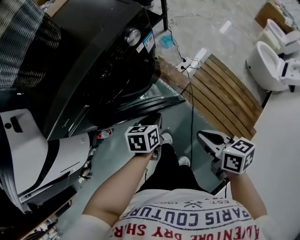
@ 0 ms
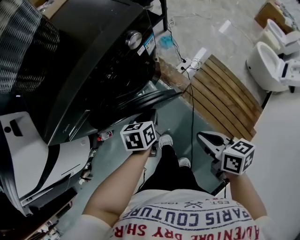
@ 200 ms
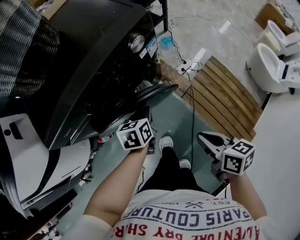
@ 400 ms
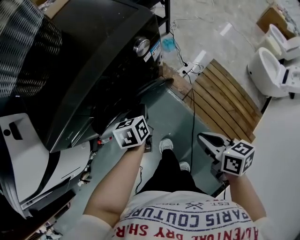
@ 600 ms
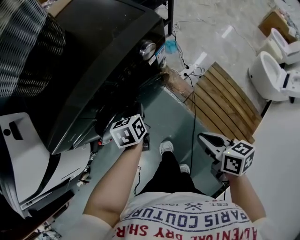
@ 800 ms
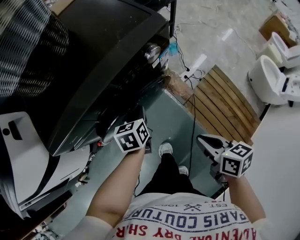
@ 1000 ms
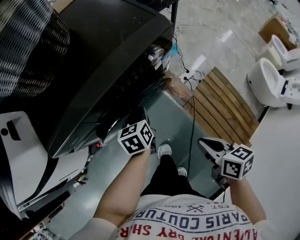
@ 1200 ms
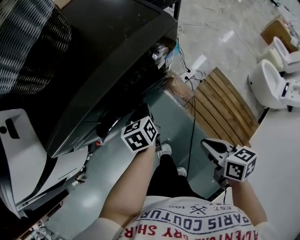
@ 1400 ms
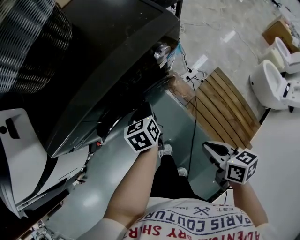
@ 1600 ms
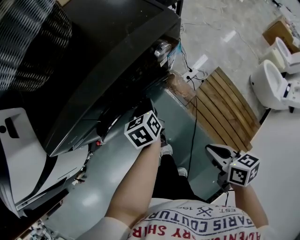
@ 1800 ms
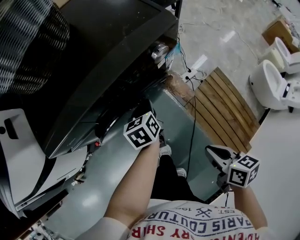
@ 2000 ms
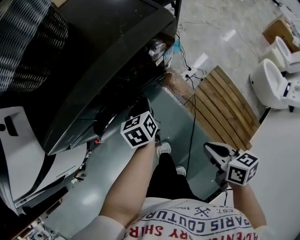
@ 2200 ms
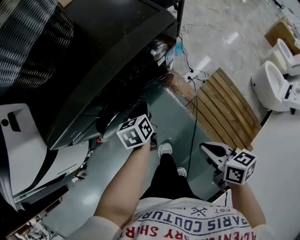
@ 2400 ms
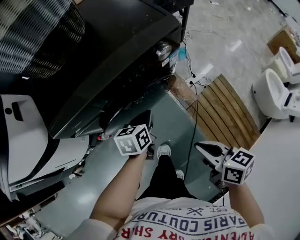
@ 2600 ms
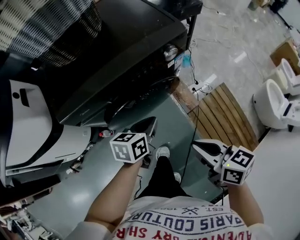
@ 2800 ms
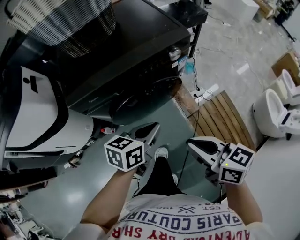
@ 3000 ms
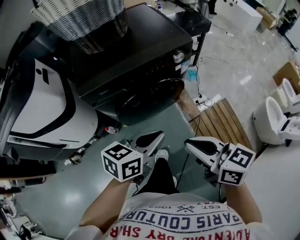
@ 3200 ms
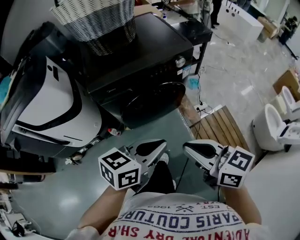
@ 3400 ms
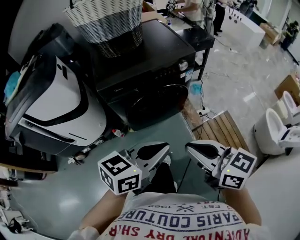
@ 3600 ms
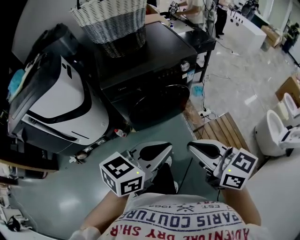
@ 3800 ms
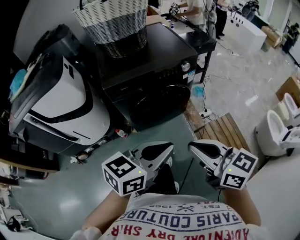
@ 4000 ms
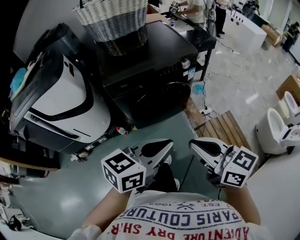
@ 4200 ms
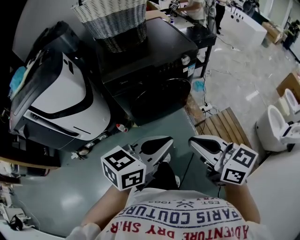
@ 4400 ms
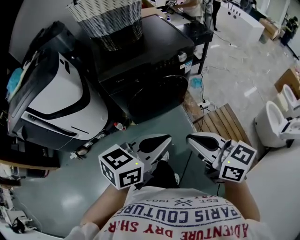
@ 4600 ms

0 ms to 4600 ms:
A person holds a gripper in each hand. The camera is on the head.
0 ms to 1600 ms: The left gripper moves forward, approximately 15 cm, and rotates roughly 30 degrees. The right gripper shifts approximately 5 cm forward.
1600 ms to 3000 ms: The left gripper travels backward and upward by roughly 25 cm, and swivels roughly 30 degrees; the right gripper goes approximately 15 cm upward and to the left, and rotates some 30 degrees.
3000 ms to 4600 ms: The right gripper goes roughly 15 cm backward and upward. The left gripper shifts about 25 cm backward and upward.

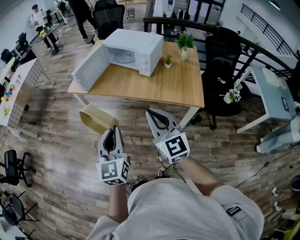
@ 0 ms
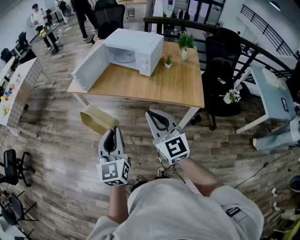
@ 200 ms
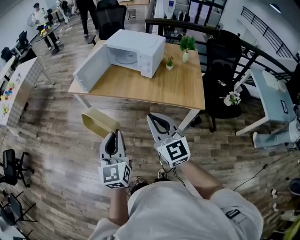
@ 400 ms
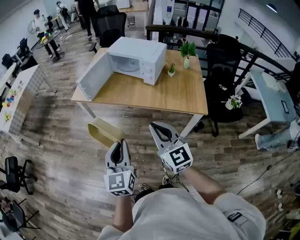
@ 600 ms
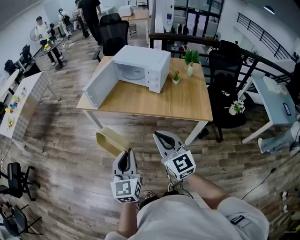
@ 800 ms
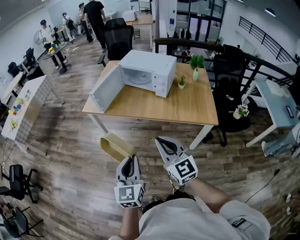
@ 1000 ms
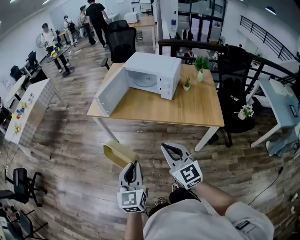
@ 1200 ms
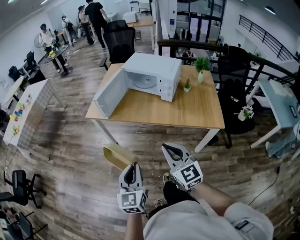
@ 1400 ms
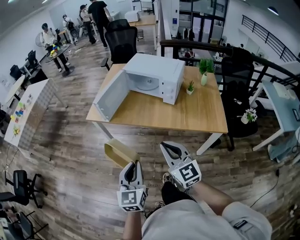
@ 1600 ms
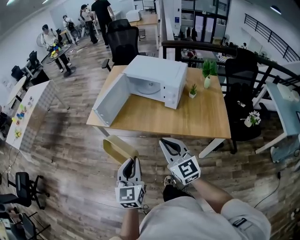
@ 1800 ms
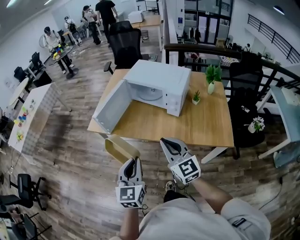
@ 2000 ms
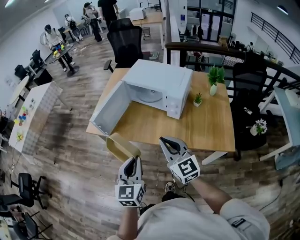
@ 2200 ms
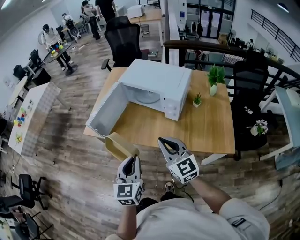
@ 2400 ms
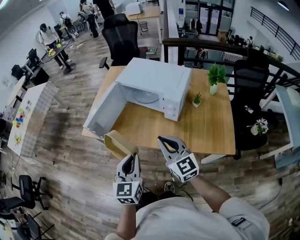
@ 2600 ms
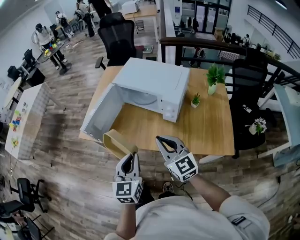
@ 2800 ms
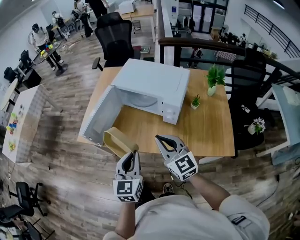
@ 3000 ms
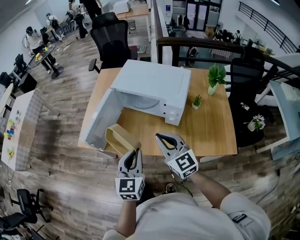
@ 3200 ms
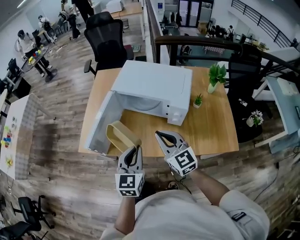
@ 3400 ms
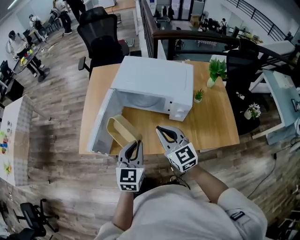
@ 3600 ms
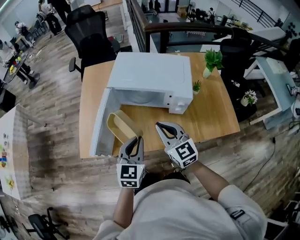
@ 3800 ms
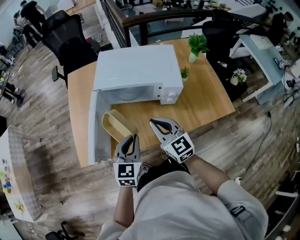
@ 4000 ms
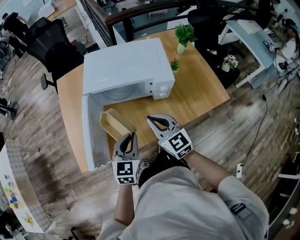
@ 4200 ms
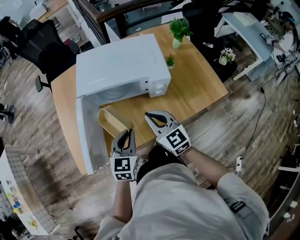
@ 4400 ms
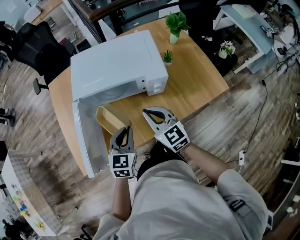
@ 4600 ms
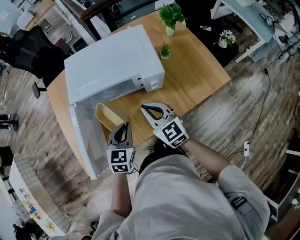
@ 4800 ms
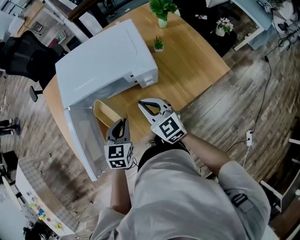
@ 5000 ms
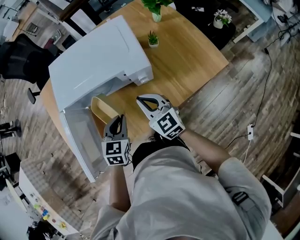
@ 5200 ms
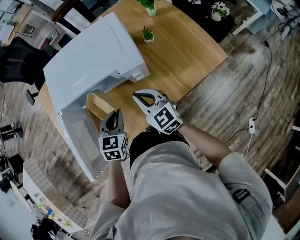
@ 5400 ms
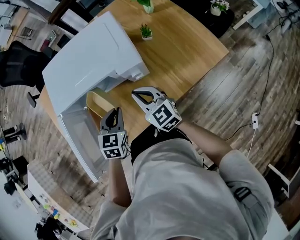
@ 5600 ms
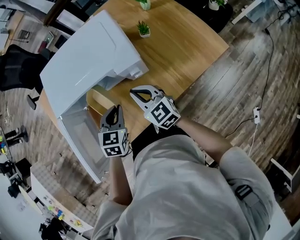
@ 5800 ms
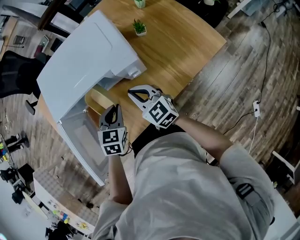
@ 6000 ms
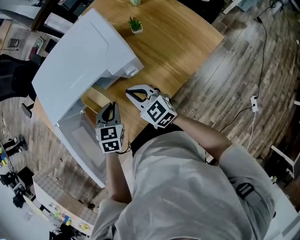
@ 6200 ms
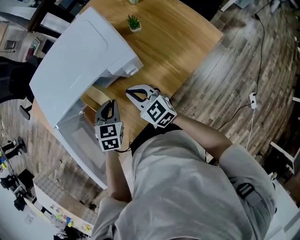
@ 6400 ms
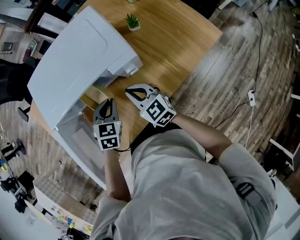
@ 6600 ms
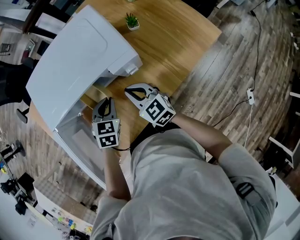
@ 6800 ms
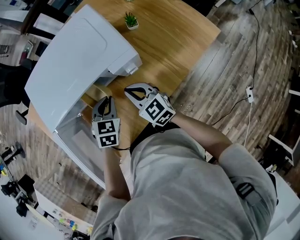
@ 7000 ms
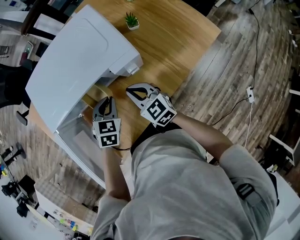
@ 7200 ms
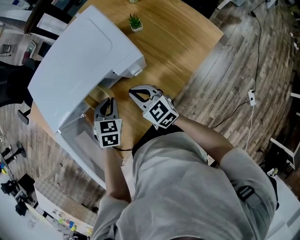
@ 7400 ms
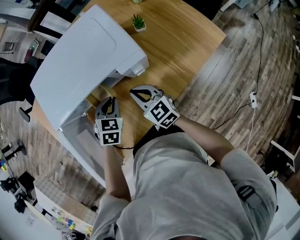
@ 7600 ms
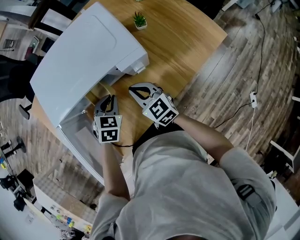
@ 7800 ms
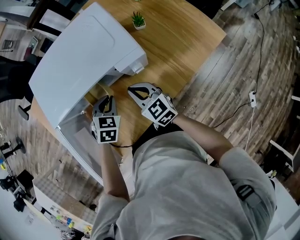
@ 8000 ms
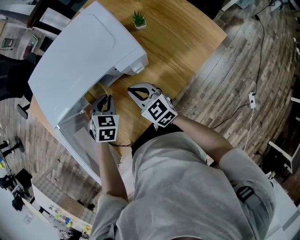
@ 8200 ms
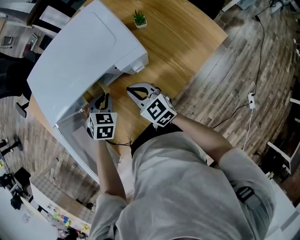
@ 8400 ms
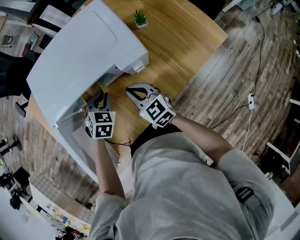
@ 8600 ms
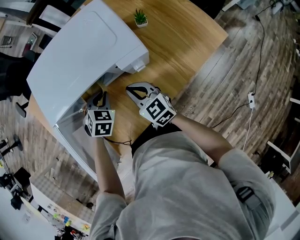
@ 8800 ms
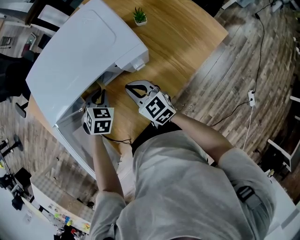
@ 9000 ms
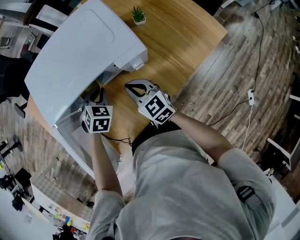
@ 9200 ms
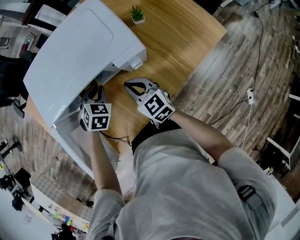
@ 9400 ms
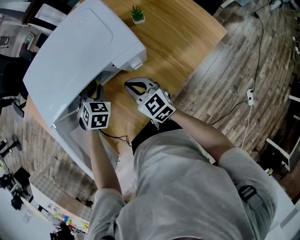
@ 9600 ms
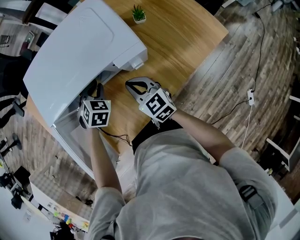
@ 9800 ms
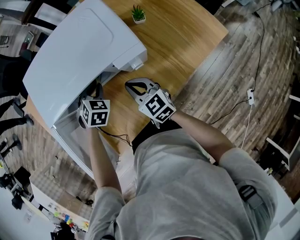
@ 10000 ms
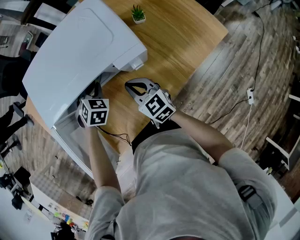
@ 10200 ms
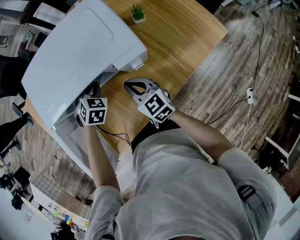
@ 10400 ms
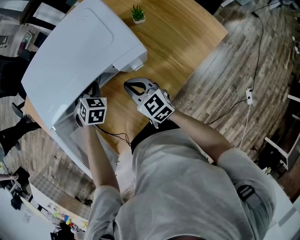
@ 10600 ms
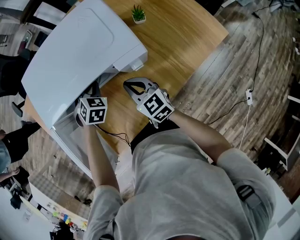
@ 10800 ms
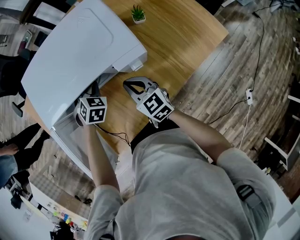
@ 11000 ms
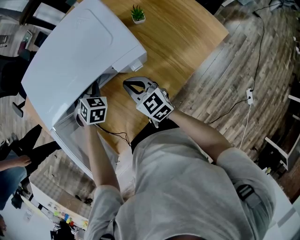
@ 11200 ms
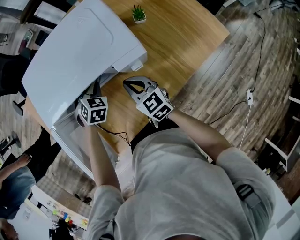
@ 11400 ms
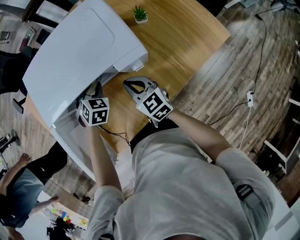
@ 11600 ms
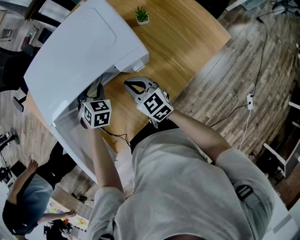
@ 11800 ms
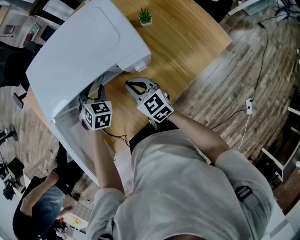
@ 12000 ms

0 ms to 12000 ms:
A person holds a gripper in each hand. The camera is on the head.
0 ms to 1600 ms: Both grippers move to the left, forward and downward, some 15 cm.
1600 ms to 3000 ms: Both grippers move forward, about 25 cm.
3000 ms to 4400 ms: The right gripper shifts by some 15 cm, and swivels approximately 30 degrees; the left gripper ends up roughly 20 cm from where it was, and changes its angle by approximately 40 degrees.
4400 ms to 6000 ms: The left gripper heads forward and downward, covering about 15 cm, and turns by about 30 degrees. Meanwhile the right gripper shifts some 10 cm downward and forward.
6000 ms to 7600 ms: The left gripper shifts by some 5 cm.
7600 ms to 9000 ms: There are only small adjustments of the grippers.
9000 ms to 10400 ms: The grippers make only small movements.
10400 ms to 12000 ms: The left gripper opens up.

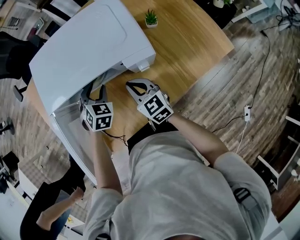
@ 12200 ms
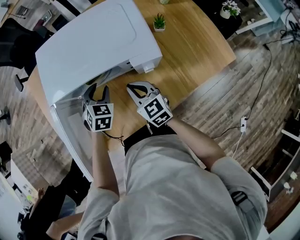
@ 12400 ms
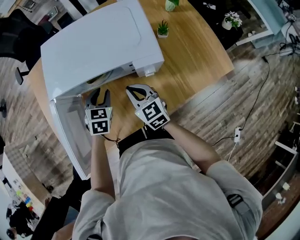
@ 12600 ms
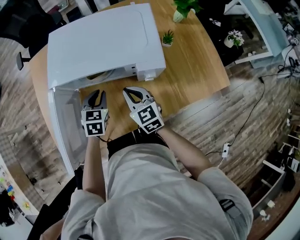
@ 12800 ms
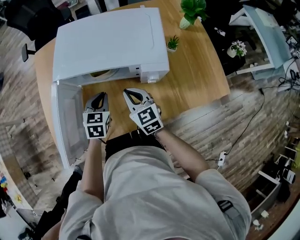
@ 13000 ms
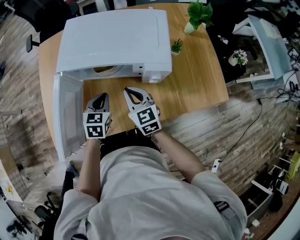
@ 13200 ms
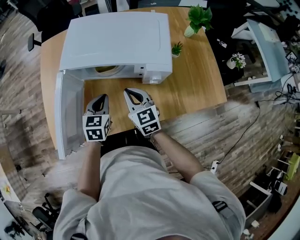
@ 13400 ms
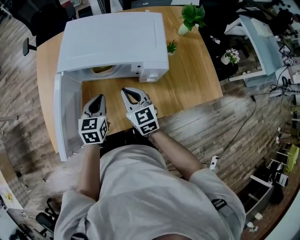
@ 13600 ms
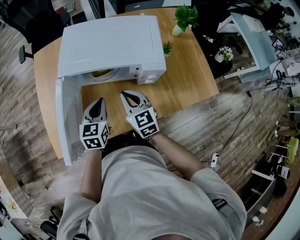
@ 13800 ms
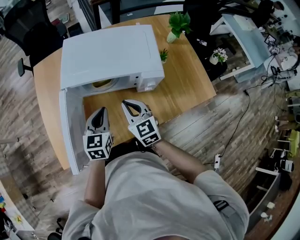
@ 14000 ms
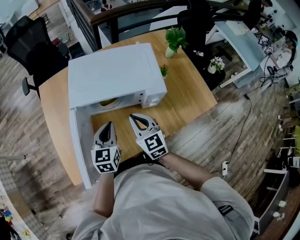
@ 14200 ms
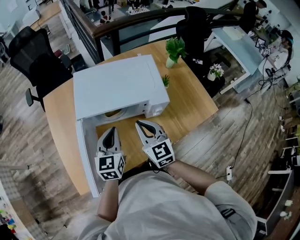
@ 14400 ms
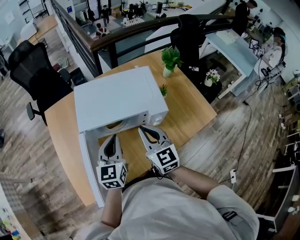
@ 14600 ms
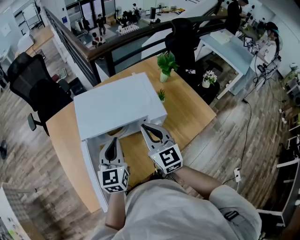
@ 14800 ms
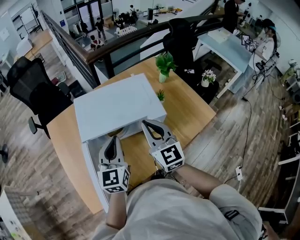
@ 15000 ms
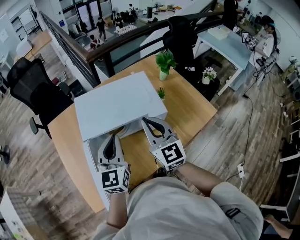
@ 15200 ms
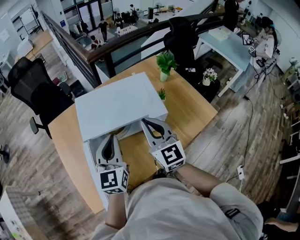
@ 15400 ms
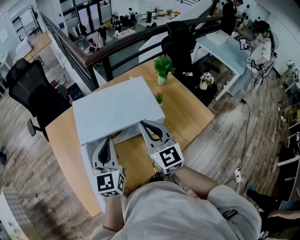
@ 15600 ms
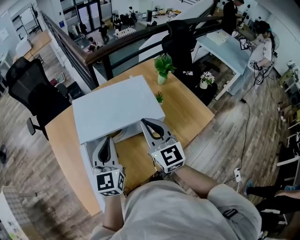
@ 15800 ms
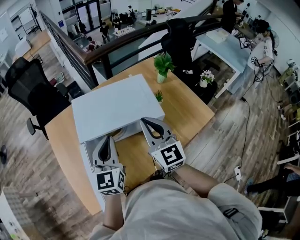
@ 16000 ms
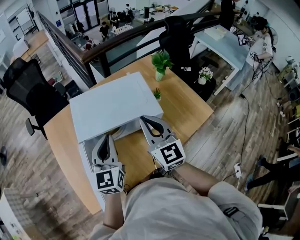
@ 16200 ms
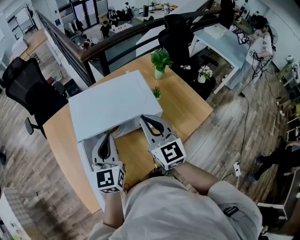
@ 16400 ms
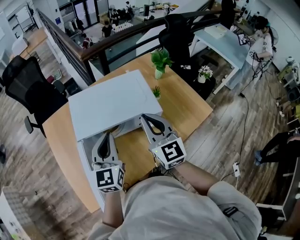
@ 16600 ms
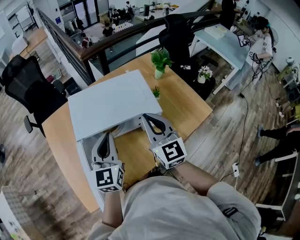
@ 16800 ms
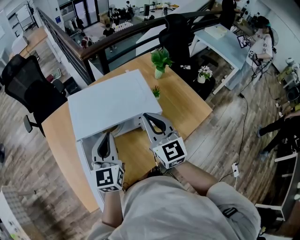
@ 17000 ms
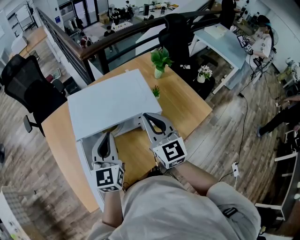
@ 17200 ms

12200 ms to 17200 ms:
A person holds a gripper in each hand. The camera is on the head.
12200 ms to 13800 ms: The right gripper heads upward and to the left, covering roughly 10 cm; the left gripper travels backward and upward by approximately 15 cm, twists roughly 40 degrees counterclockwise, seen from behind, and closes up.
13800 ms to 15600 ms: Both grippers move upward, roughly 20 cm. The left gripper rotates some 30 degrees; the right gripper turns by about 30 degrees.
15600 ms to 17200 ms: The grippers stay close to where they were, moving slightly.

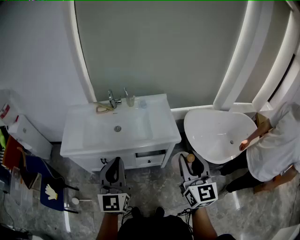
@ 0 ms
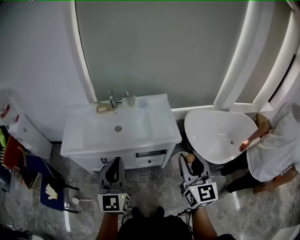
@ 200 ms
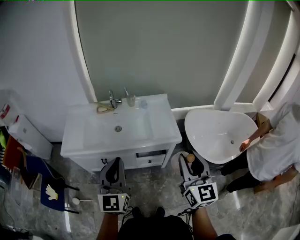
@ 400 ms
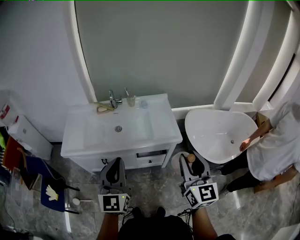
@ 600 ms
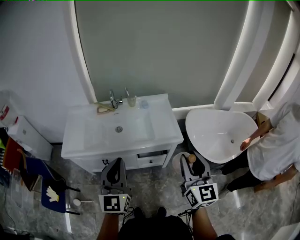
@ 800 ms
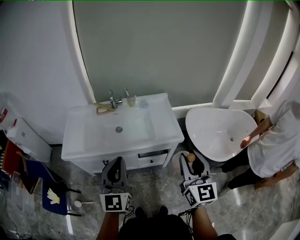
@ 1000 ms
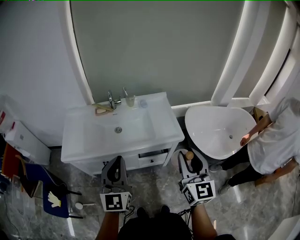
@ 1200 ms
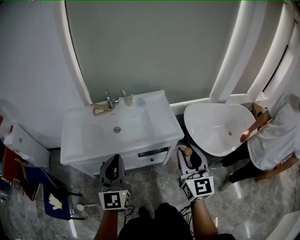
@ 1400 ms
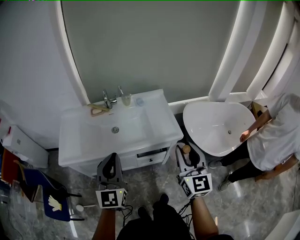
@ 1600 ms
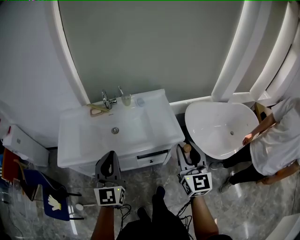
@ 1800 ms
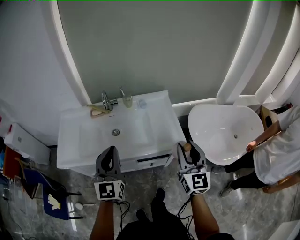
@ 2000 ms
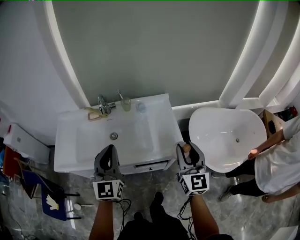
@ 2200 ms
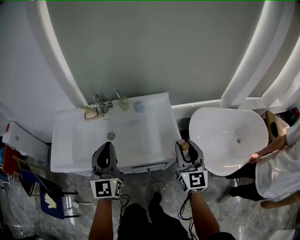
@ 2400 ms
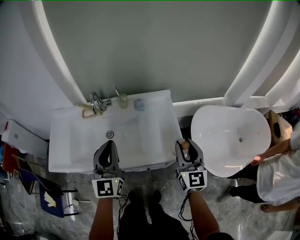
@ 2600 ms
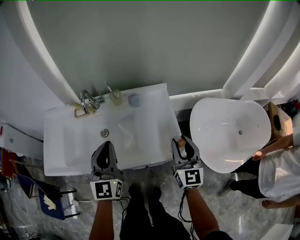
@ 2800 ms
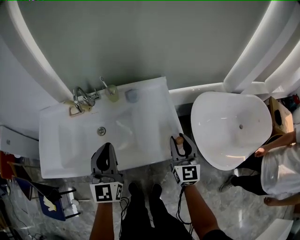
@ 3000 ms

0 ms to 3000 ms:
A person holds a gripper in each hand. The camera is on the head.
0 ms to 1600 ms: The left gripper is displaced forward and to the left by approximately 10 cm. Meanwhile the right gripper moves forward, roughly 5 cm.
1600 ms to 3000 ms: The two grippers go about 35 cm forward and downward.
